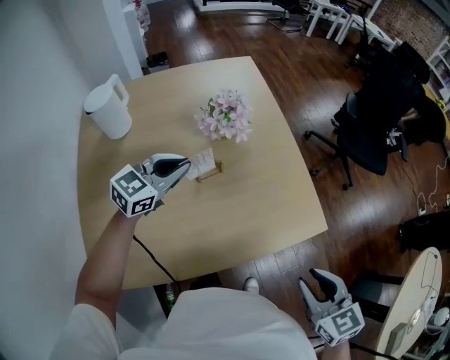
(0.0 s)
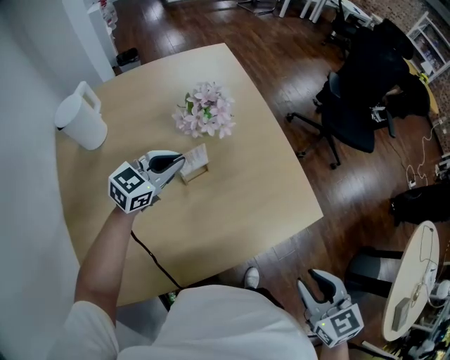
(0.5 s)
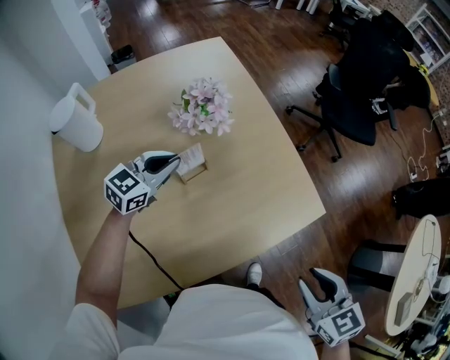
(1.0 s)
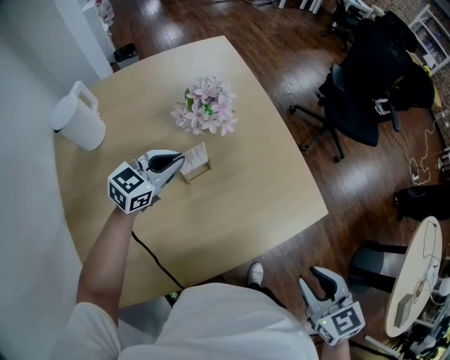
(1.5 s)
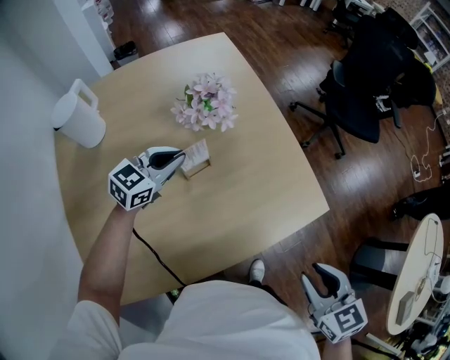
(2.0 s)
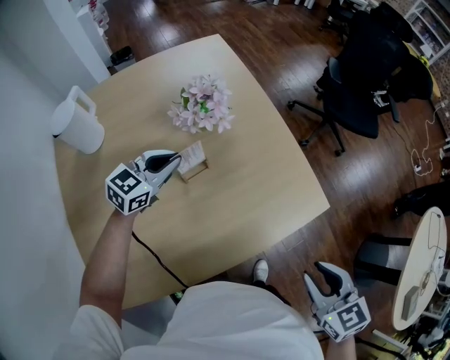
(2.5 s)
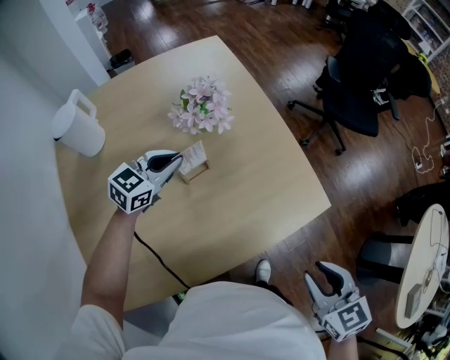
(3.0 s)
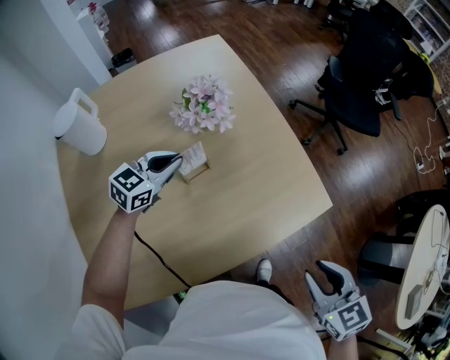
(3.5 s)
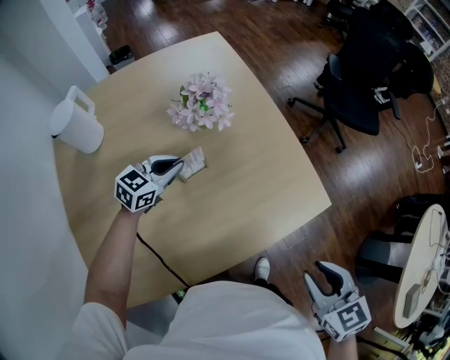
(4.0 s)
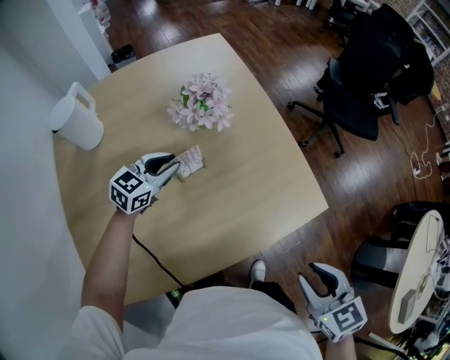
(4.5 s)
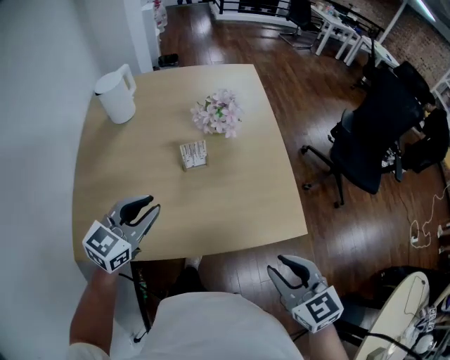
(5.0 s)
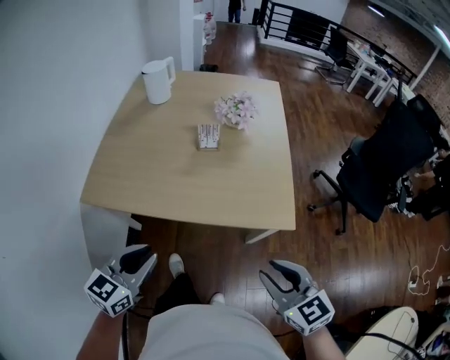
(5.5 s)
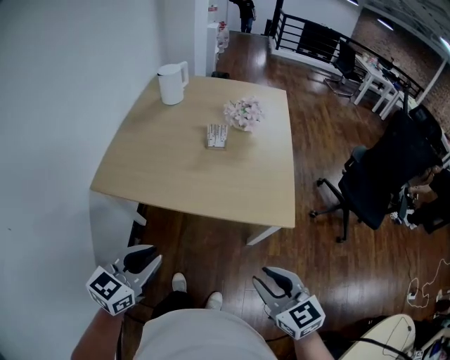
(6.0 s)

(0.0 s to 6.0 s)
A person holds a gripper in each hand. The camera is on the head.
0.0 s - 2.0 s: The left gripper shifts some 10 cm downward and forward.
2.0 s - 4.0 s: The left gripper moves downward, some 5 cm.
4.0 s - 6.0 s: The right gripper ends up some 20 cm from where it was, and rotates about 50 degrees. The left gripper shifts by some 60 cm, and rotates about 50 degrees.

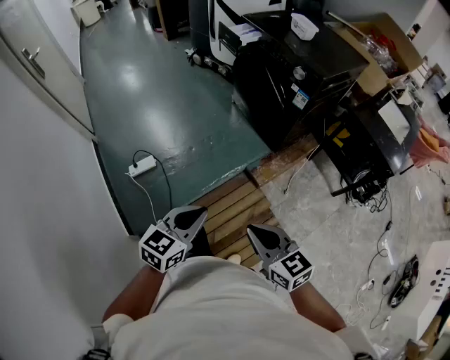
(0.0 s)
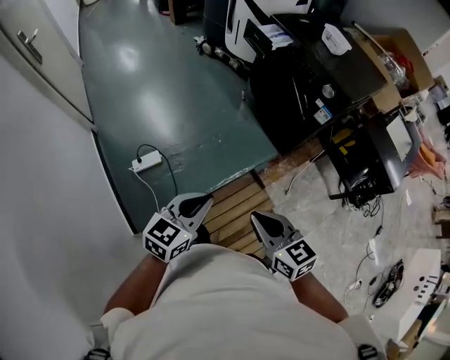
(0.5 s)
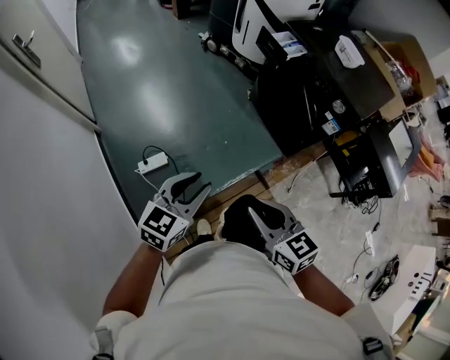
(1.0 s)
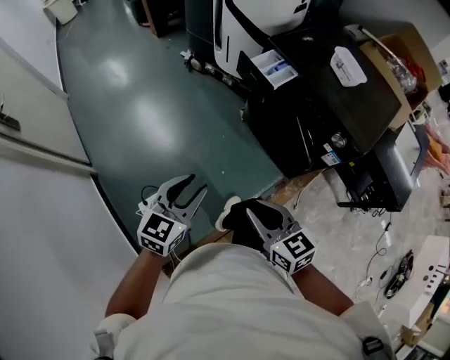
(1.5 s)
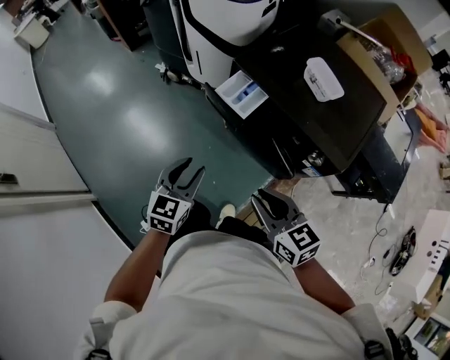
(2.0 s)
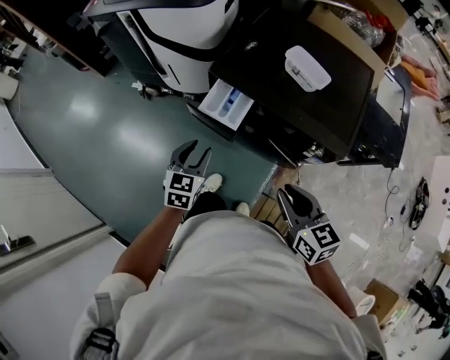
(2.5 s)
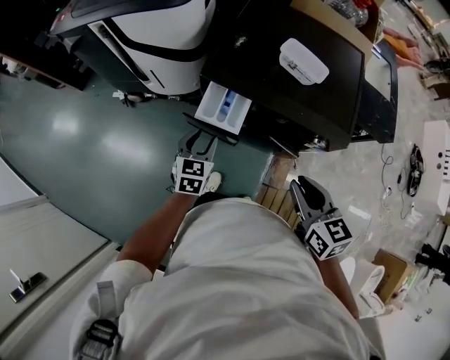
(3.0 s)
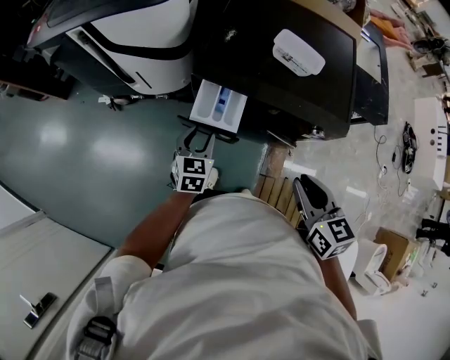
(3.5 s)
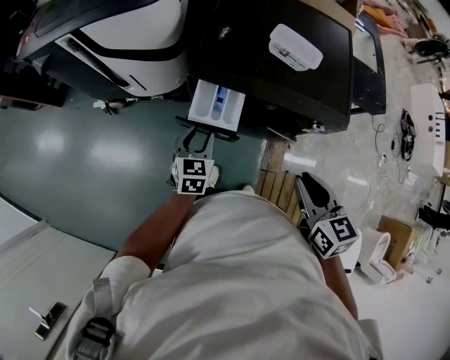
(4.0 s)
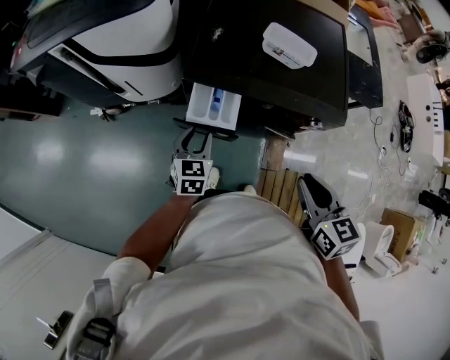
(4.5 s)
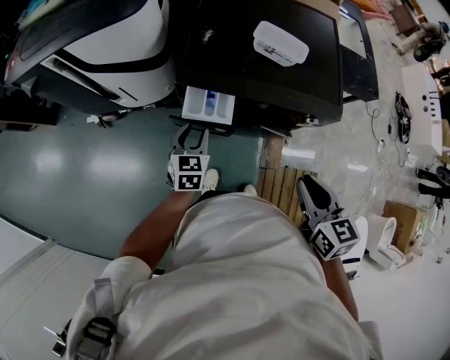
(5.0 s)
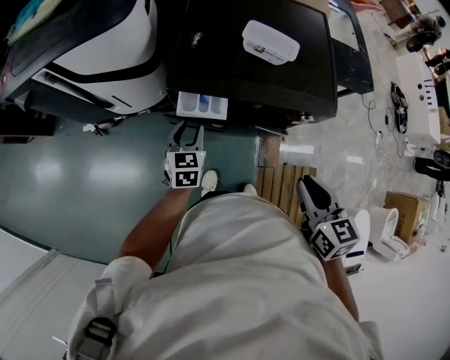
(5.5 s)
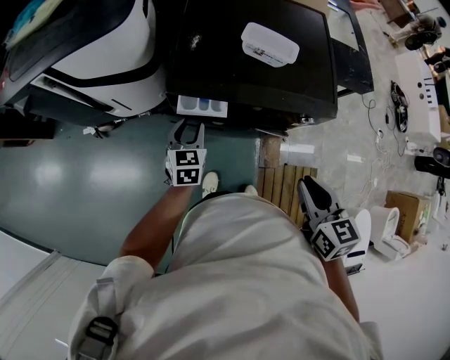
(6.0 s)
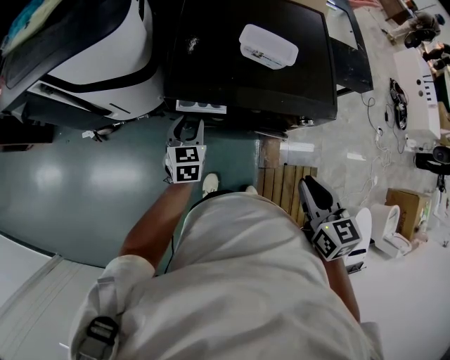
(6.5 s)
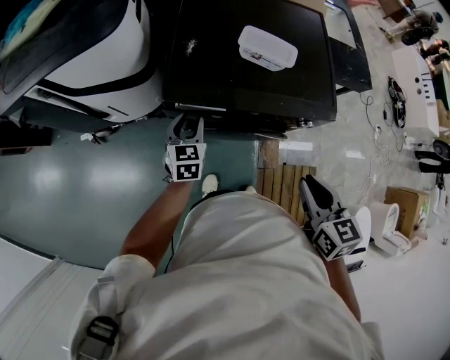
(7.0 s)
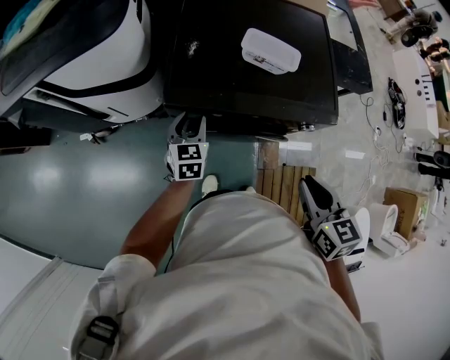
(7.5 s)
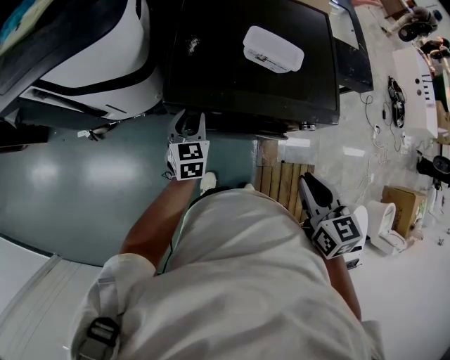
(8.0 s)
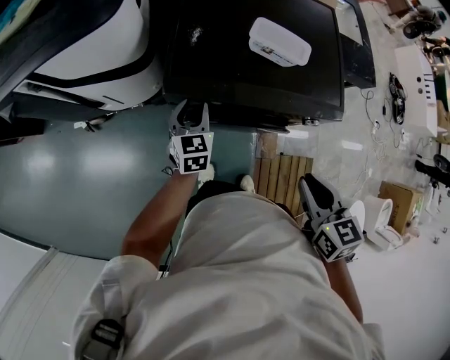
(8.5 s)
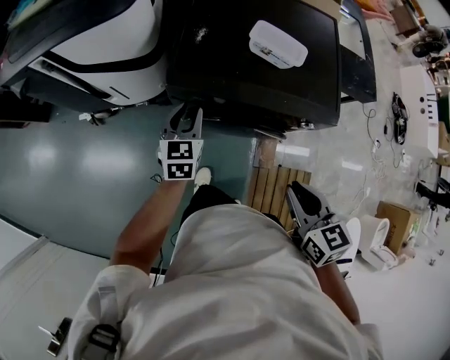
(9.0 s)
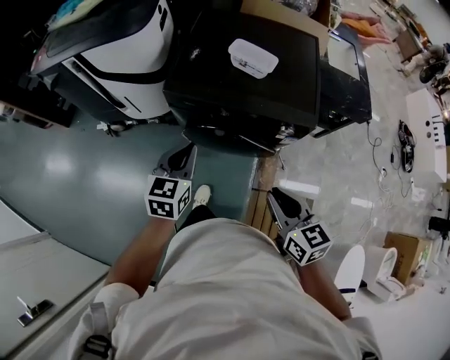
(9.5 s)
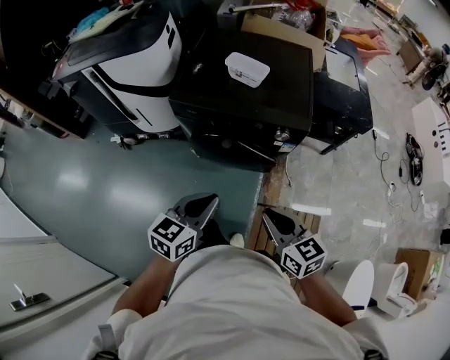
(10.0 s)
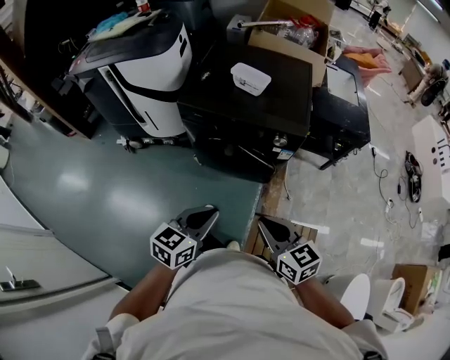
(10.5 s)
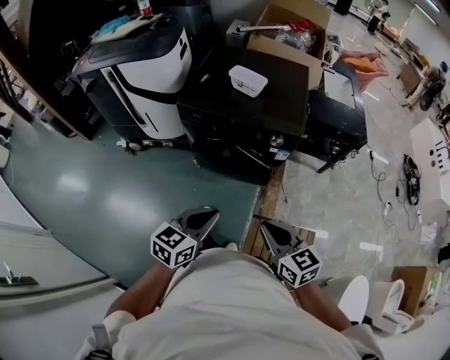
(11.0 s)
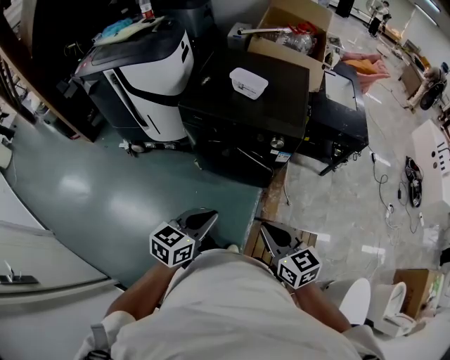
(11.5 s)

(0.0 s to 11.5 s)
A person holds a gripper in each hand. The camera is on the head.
0.0 s - 2.0 s: Both grippers are carried forward, about 60 cm. The left gripper opens.
2.0 s - 4.0 s: The right gripper shifts by some 10 cm, and swivels about 50 degrees; the left gripper moves roughly 25 cm, and changes its angle by approximately 20 degrees.
4.0 s - 6.0 s: The left gripper moves forward, roughly 5 cm.
6.0 s - 7.5 s: The left gripper shifts roughly 5 cm forward.
7.5 s - 9.5 s: The left gripper heads backward and upward, covering roughly 25 cm, and closes. The right gripper shifts roughly 10 cm backward.
9.5 s - 11.5 s: The right gripper moves backward, about 15 cm; the left gripper moves backward and to the right, about 30 cm.

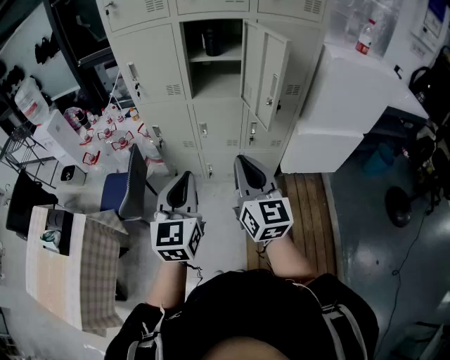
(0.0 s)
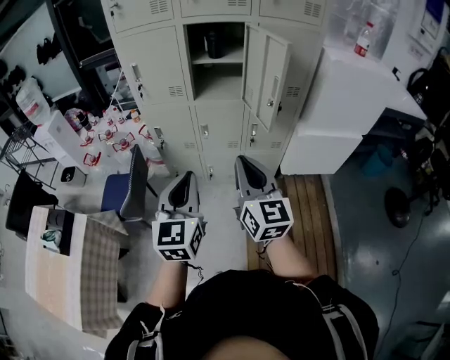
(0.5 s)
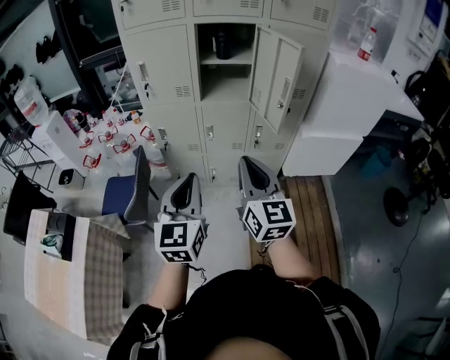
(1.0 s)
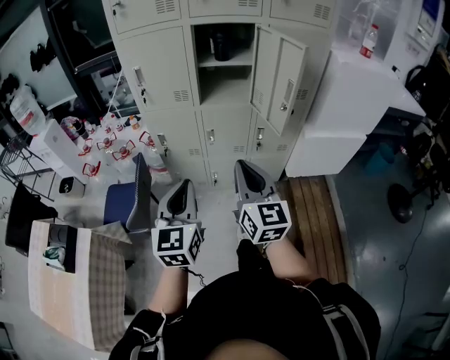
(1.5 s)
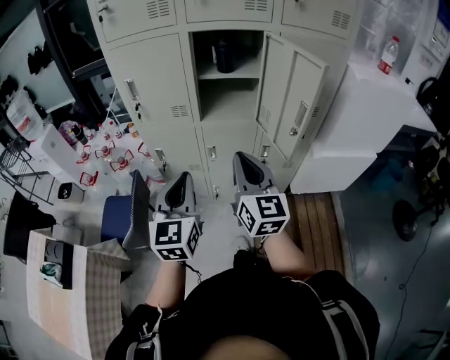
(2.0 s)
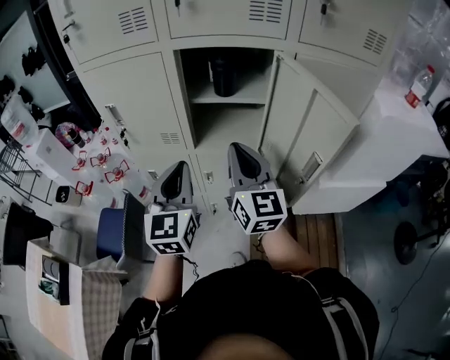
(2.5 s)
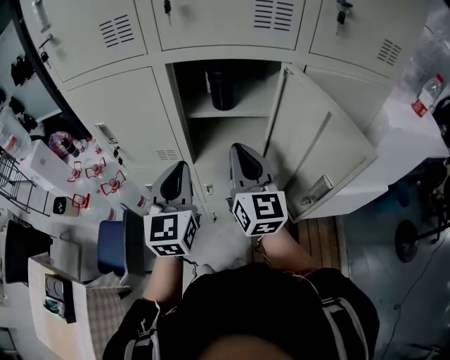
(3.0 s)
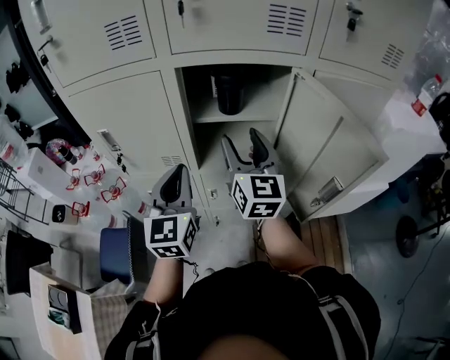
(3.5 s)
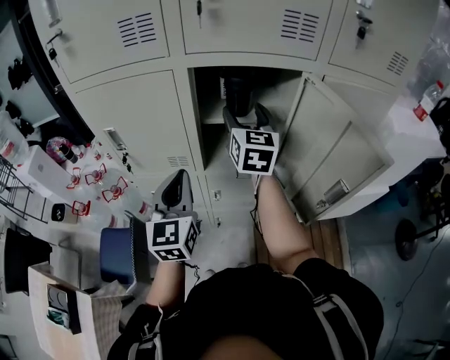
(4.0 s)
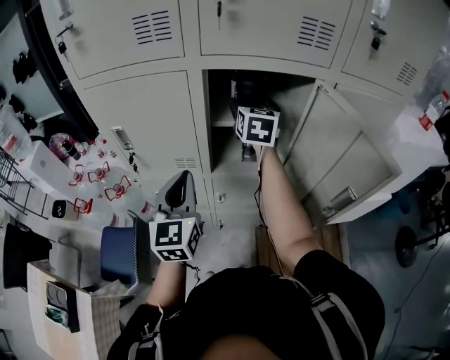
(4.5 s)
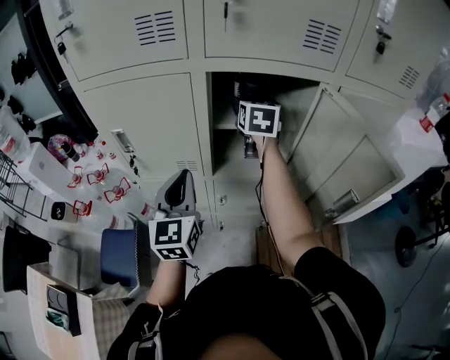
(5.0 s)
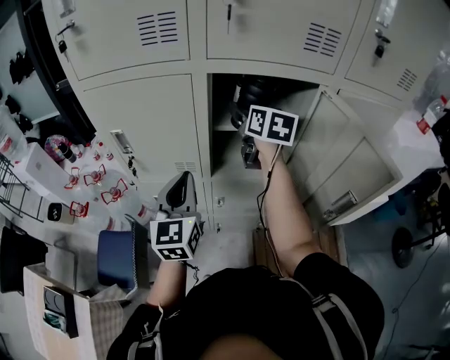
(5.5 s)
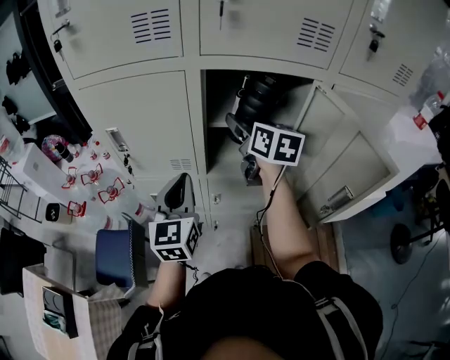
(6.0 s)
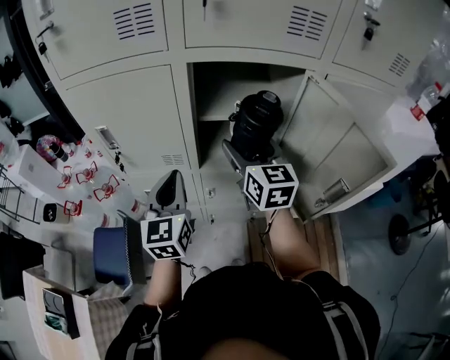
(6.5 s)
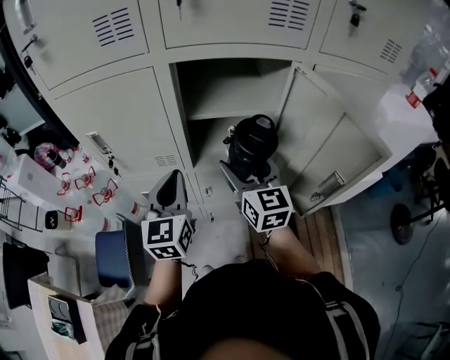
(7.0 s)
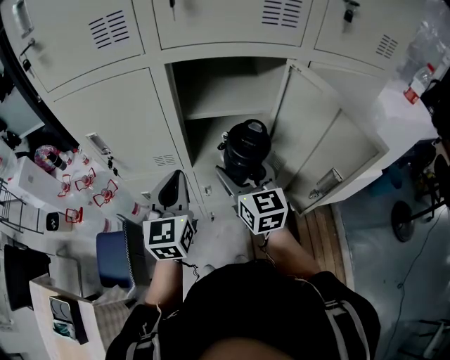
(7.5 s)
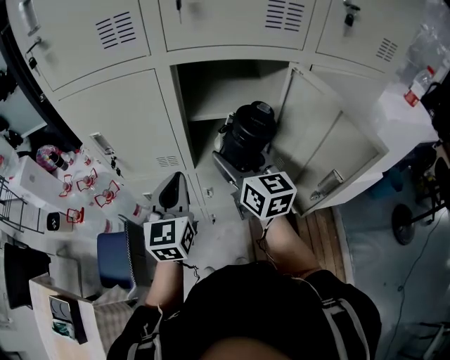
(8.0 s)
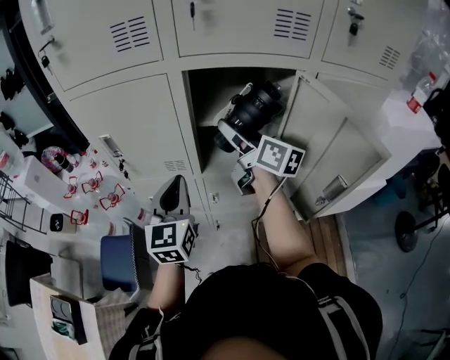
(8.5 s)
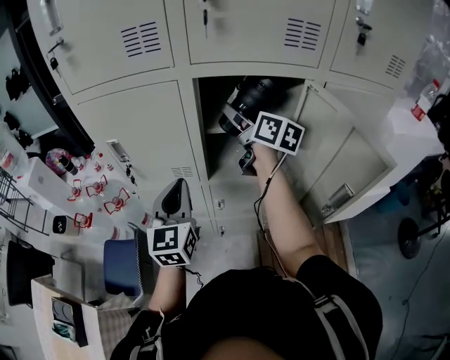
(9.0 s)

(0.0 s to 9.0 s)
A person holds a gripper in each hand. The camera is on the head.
0.0 s - 2.0 s: The two grippers go roughly 20 cm forward.
2.0 s - 4.5 s: The left gripper is displaced forward by approximately 30 cm. The right gripper shifts about 50 cm forward, changes its angle by roughly 20 degrees, and opens up.
4.5 s - 7.0 s: The right gripper goes approximately 20 cm backward and downward.
7.0 s - 9.0 s: The right gripper shifts some 15 cm forward and upward, and swivels about 30 degrees.
